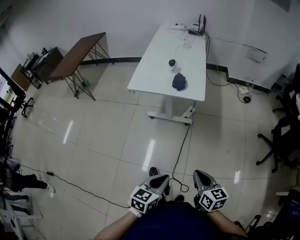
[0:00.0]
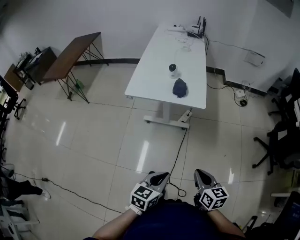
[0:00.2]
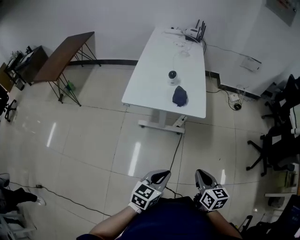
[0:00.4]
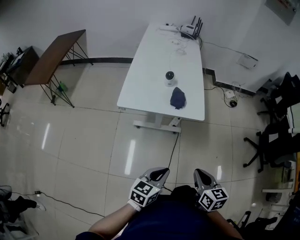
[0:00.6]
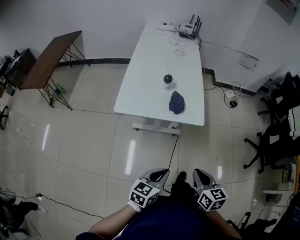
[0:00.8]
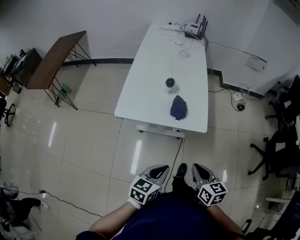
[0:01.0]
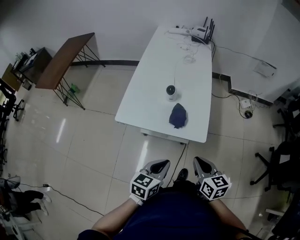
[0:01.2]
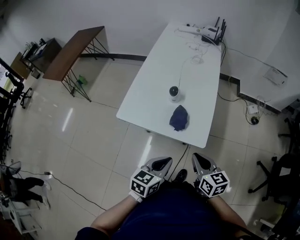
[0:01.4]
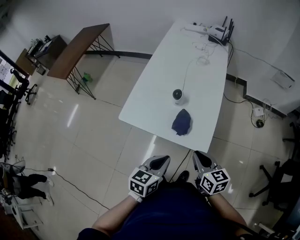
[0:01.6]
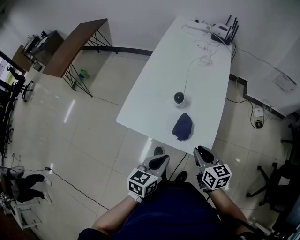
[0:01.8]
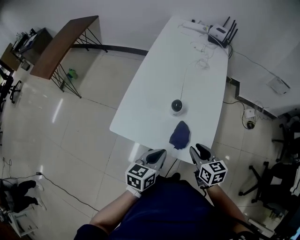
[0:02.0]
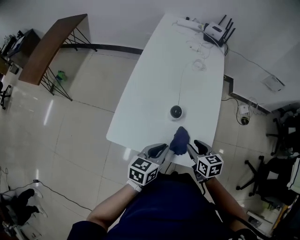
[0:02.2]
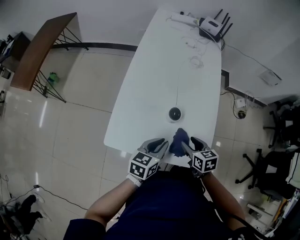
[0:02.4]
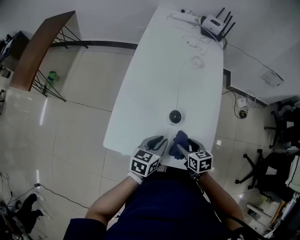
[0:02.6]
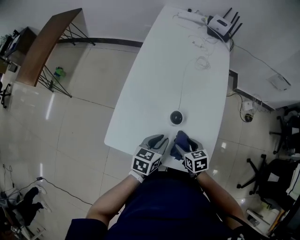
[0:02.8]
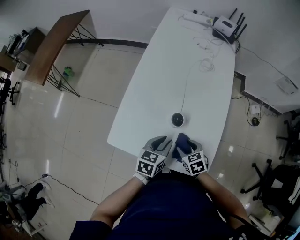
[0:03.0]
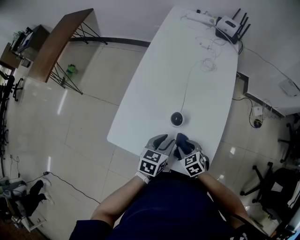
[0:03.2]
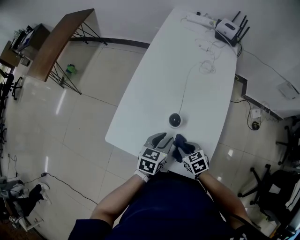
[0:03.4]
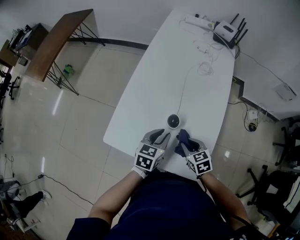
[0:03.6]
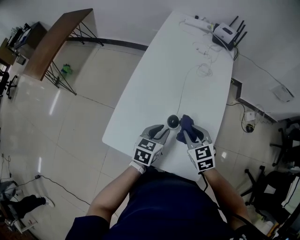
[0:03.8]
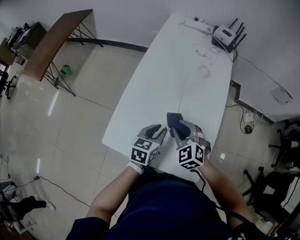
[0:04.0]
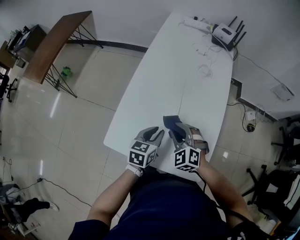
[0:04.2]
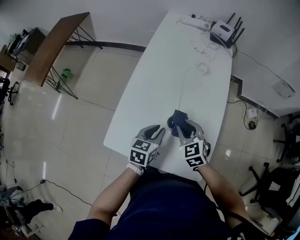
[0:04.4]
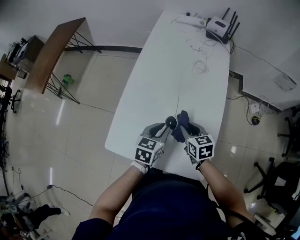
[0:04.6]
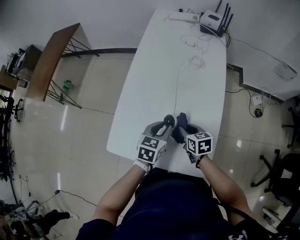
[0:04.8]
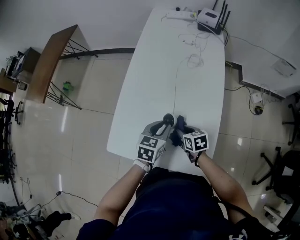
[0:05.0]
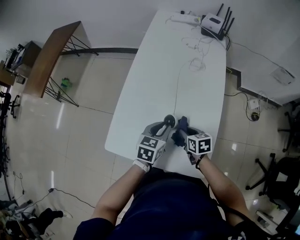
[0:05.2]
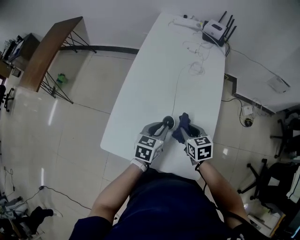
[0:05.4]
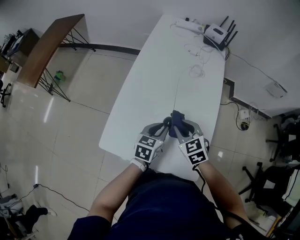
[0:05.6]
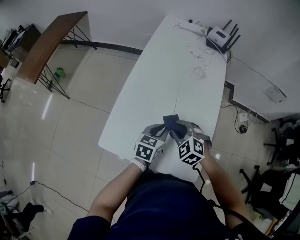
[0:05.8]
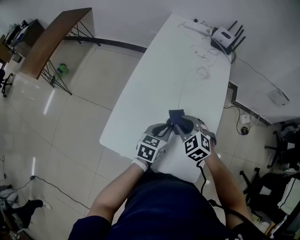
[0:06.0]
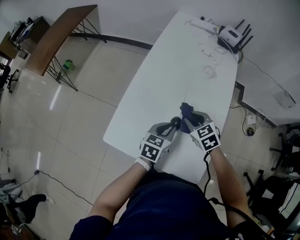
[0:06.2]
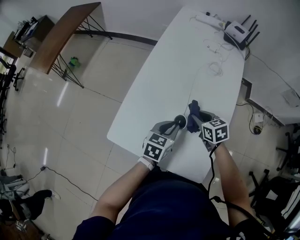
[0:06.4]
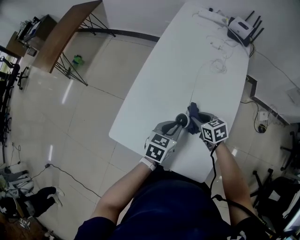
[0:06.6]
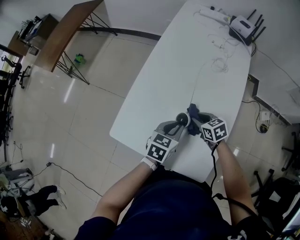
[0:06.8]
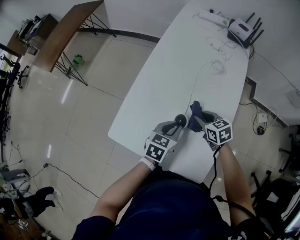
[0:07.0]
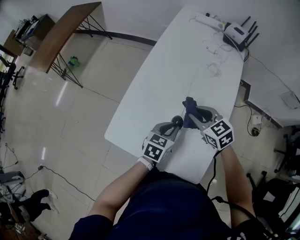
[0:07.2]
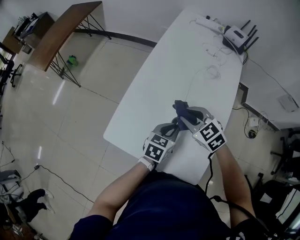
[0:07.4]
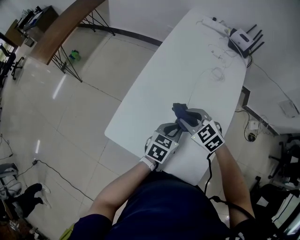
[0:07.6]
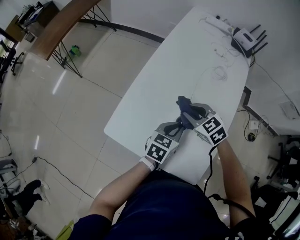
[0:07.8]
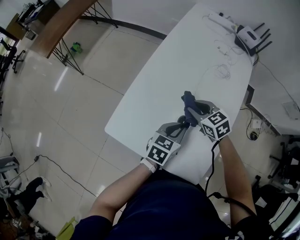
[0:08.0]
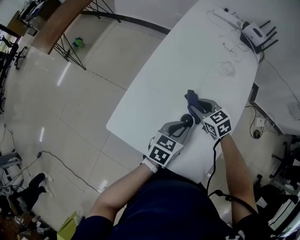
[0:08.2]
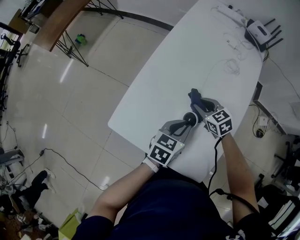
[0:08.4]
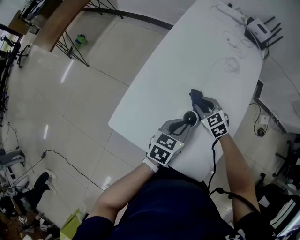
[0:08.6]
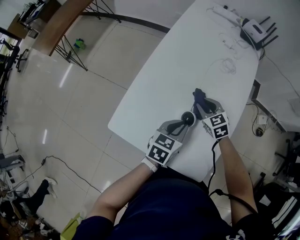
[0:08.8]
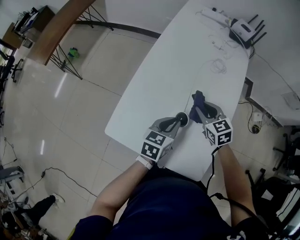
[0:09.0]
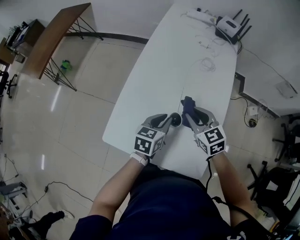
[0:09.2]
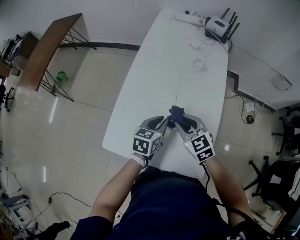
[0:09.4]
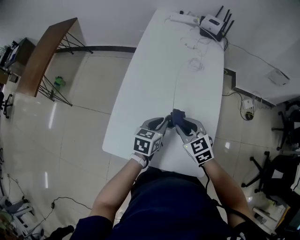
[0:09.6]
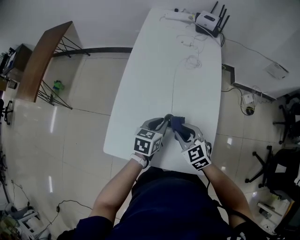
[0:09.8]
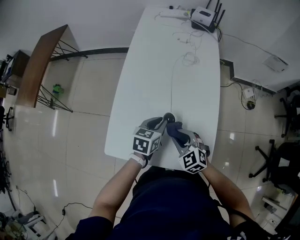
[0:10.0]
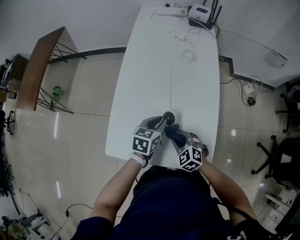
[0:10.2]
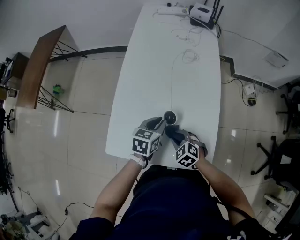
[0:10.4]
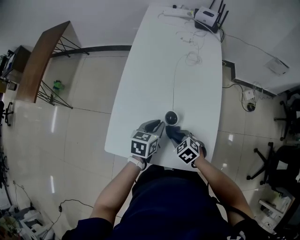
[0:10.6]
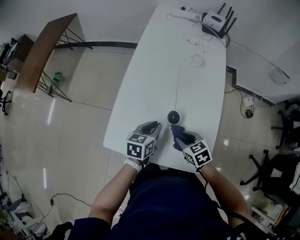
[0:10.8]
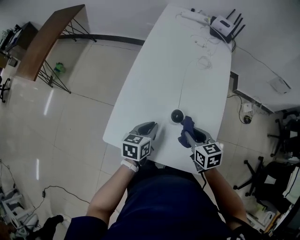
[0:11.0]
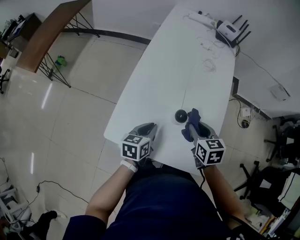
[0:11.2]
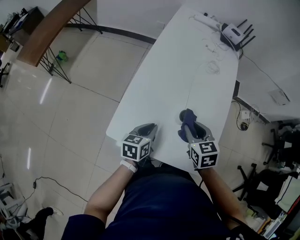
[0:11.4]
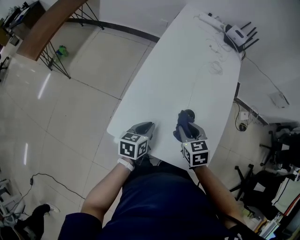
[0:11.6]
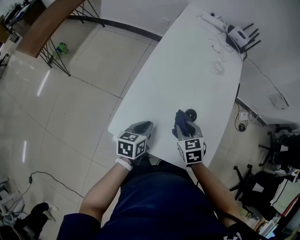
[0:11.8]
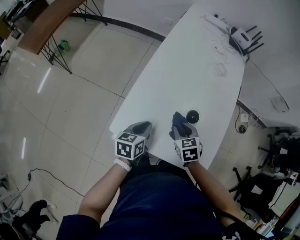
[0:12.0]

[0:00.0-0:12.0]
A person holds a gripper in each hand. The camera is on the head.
0:00.0 to 0:01.6: Both grippers are carried forward, roughly 40 cm.
0:01.6 to 0:03.0: The left gripper heads forward, covering about 25 cm, and opens, while the right gripper moves forward, downward and to the left, about 25 cm, angles its fingers downward, by about 30 degrees, and opens.
0:03.0 to 0:04.4: The right gripper heads upward and forward, covering approximately 15 cm, turns by some 30 degrees, and closes; the left gripper shifts approximately 5 cm forward.
0:04.4 to 0:06.0: The right gripper moves roughly 10 cm downward and comes back, and changes its angle by roughly 30 degrees.
0:06.0 to 0:07.6: The right gripper travels downward and back again, about 15 cm each way, and swivels some 20 degrees.
0:07.6 to 0:09.0: The right gripper shifts approximately 10 cm to the right, travels downward and back again, approximately 10 cm each way, and changes its angle by some 30 degrees.
0:09.0 to 0:10.4: The right gripper is displaced backward and downward by approximately 20 cm, and rotates approximately 30 degrees.
0:10.4 to 0:12.0: The right gripper goes about 5 cm to the left, goes upward and returns, roughly 10 cm each way, and swivels approximately 20 degrees. The left gripper shifts about 15 cm to the left and backward, and swivels roughly 20 degrees.

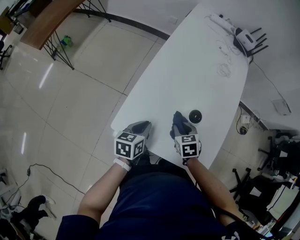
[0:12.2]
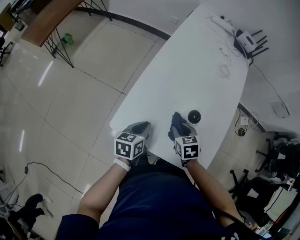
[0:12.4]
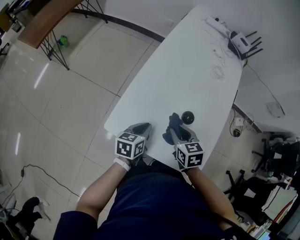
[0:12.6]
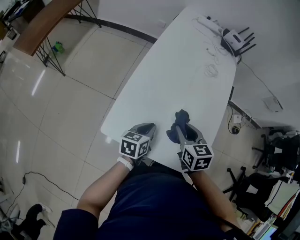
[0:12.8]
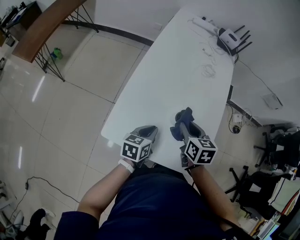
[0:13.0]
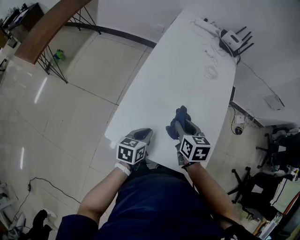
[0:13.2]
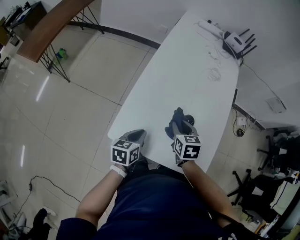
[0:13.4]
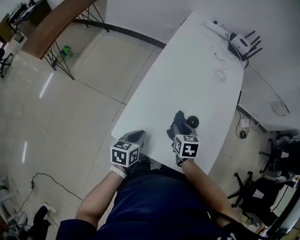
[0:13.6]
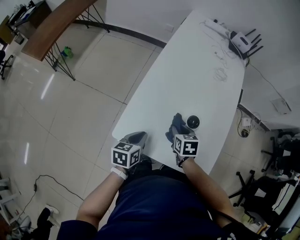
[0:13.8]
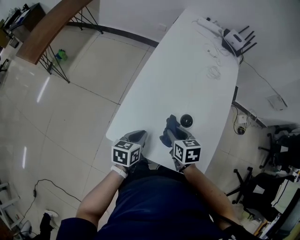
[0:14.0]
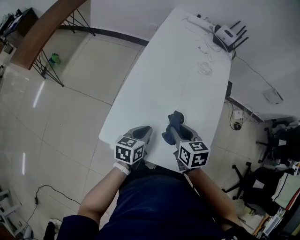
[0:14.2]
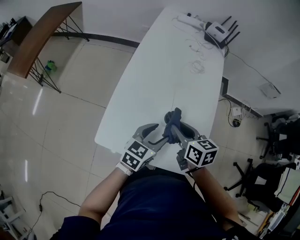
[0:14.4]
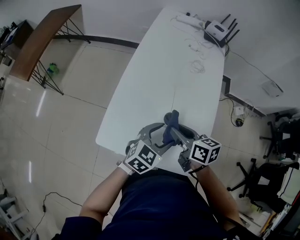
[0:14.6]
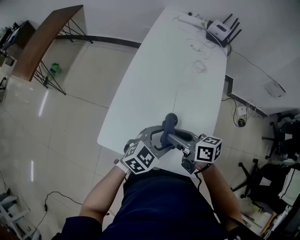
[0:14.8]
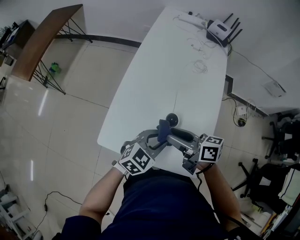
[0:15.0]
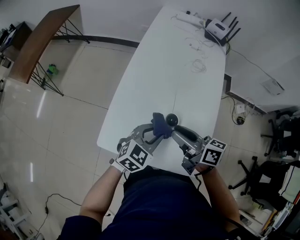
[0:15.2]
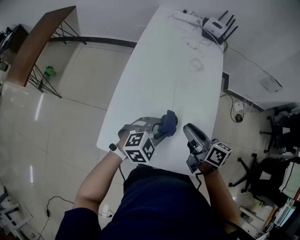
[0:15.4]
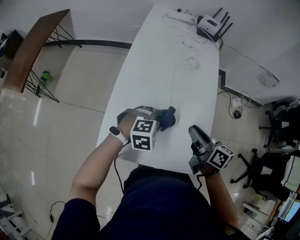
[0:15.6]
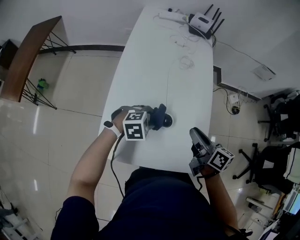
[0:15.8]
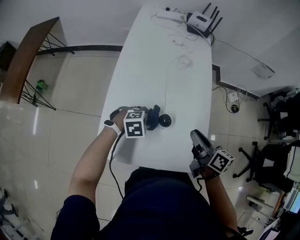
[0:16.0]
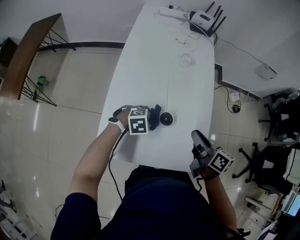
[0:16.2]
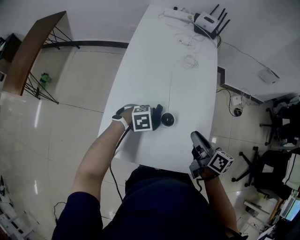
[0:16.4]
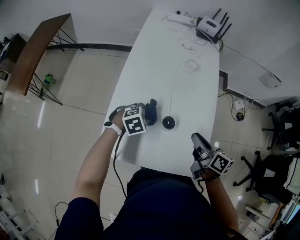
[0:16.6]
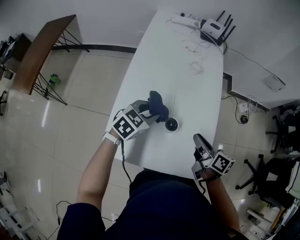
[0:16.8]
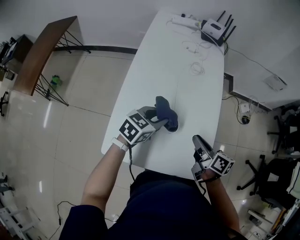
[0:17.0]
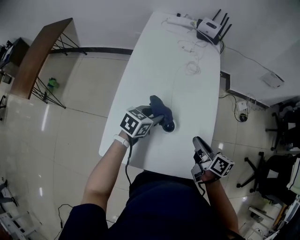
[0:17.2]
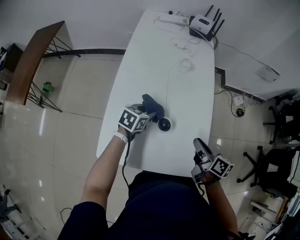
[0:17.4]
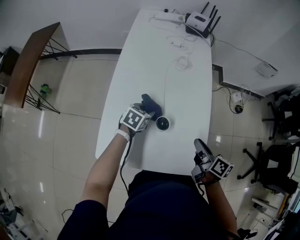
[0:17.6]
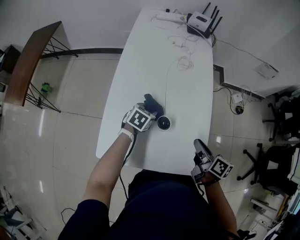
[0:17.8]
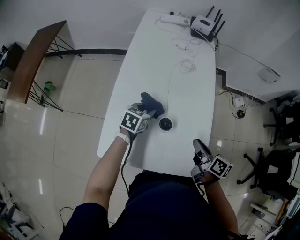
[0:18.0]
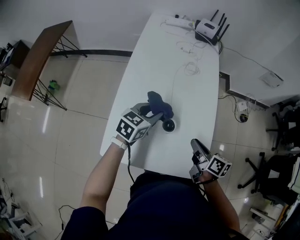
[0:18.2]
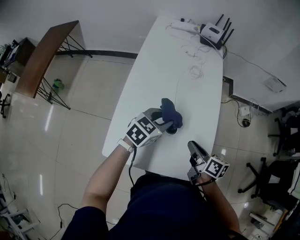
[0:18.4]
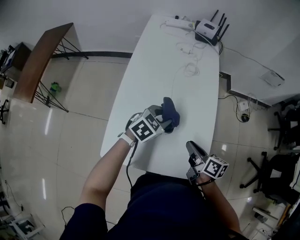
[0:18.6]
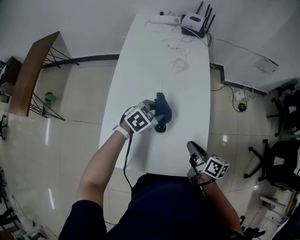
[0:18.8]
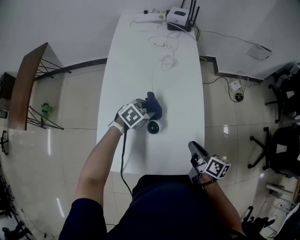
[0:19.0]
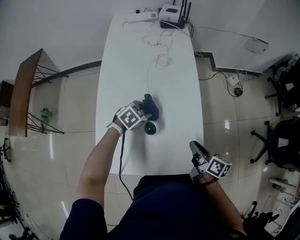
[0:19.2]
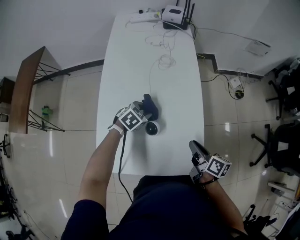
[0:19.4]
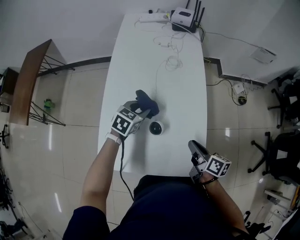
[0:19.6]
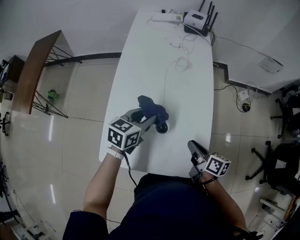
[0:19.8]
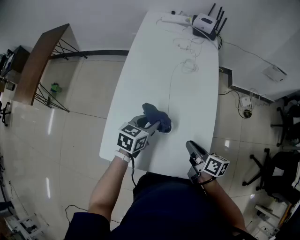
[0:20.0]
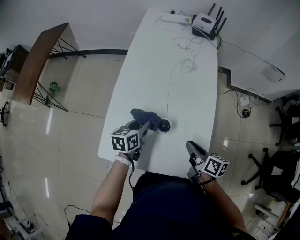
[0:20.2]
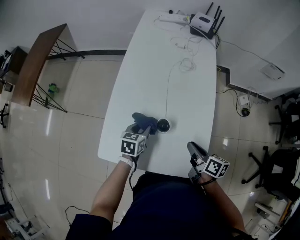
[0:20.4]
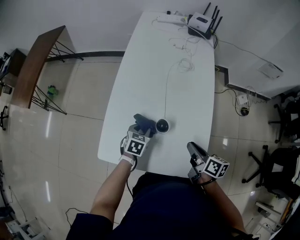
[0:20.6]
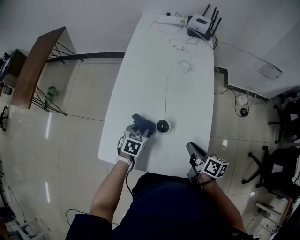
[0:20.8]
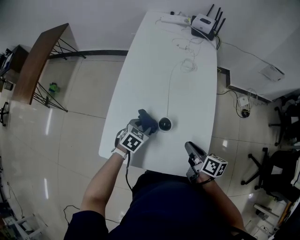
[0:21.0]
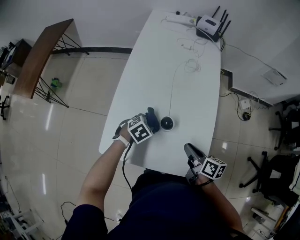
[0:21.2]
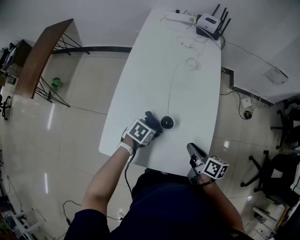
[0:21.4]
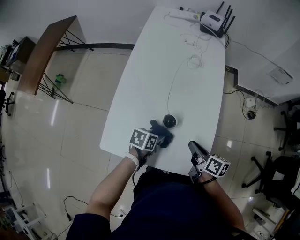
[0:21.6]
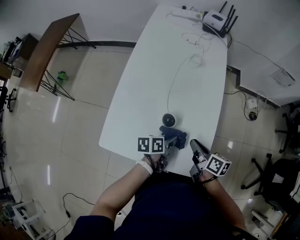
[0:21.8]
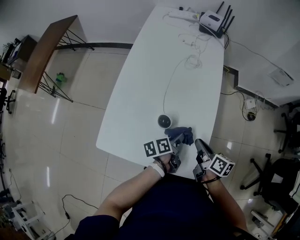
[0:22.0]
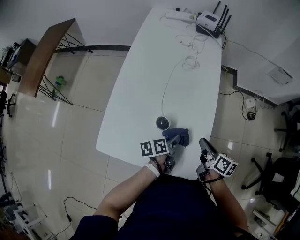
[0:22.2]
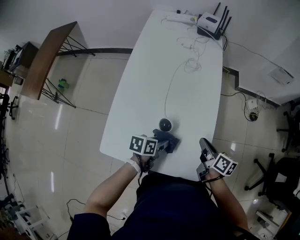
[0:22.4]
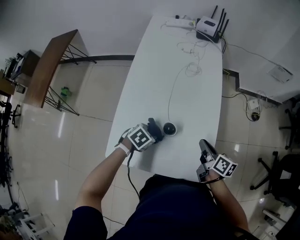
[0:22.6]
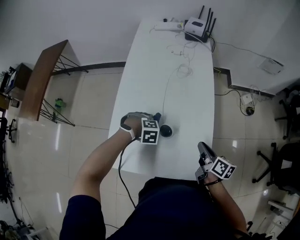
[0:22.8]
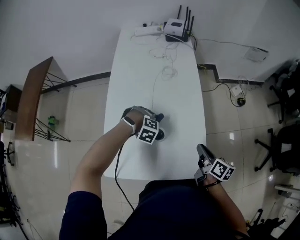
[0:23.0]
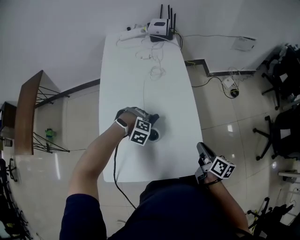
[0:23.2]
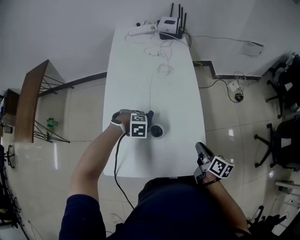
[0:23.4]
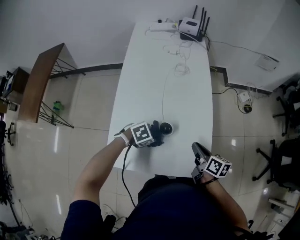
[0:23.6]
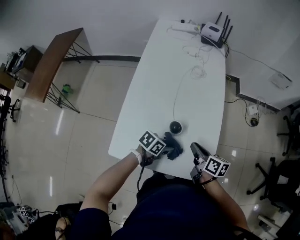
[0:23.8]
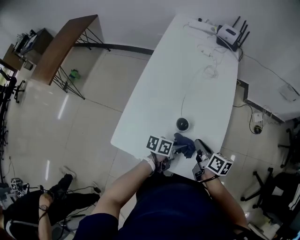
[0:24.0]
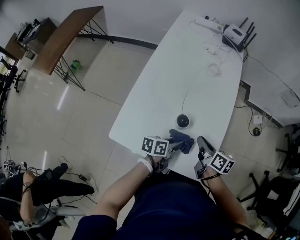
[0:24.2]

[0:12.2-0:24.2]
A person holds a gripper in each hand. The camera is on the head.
0:12.2 to 0:13.8: The right gripper moves approximately 10 cm upward and comes back. The left gripper moves about 10 cm to the right and comes back.
0:13.8 to 0:15.2: The right gripper moves upward, some 15 cm, and angles its fingers upward, by about 40 degrees, while the left gripper travels to the right and upward by roughly 15 cm, twists about 50 degrees clockwise, seen from behind, and opens, then closes once more.
0:15.2 to 0:16.6: The left gripper travels downward by about 10 cm, and tips its fingers downward by some 30 degrees. The right gripper changes place by some 10 cm, and changes its angle by some 30 degrees.
0:16.6 to 0:18.2: The left gripper goes up and down, some 15 cm each way, reversing 2 times, and tilts its fingers approximately 30 degrees upward.
0:18.2 to 0:19.8: The right gripper moves some 5 cm to the right and comes back. Meanwhile the left gripper goes downward and returns, approximately 15 cm each way.
0:19.8 to 0:21.2: The left gripper shifts approximately 15 cm downward, and points its fingers approximately 30 degrees further downward.
0:21.2 to 0:22.6: The left gripper travels to the right and back again, approximately 15 cm each way. Meanwhile the right gripper heads to the right, covering some 5 cm.
0:22.6 to 0:24.2: The left gripper shifts by about 10 cm, and angles its fingers upward, by roughly 40 degrees, while the right gripper ends up some 5 cm from where it was.
